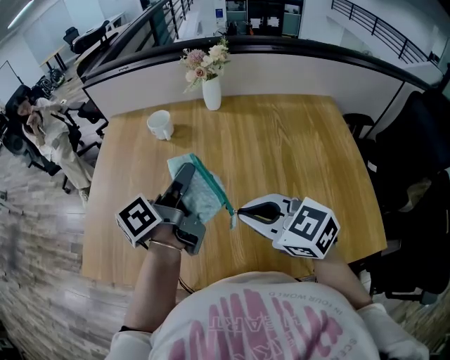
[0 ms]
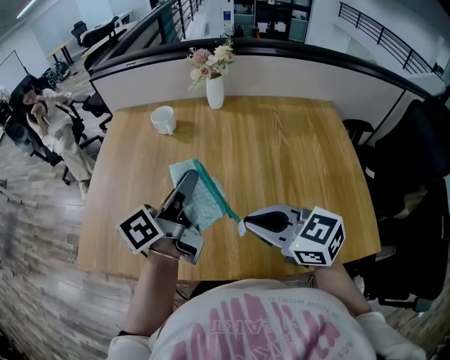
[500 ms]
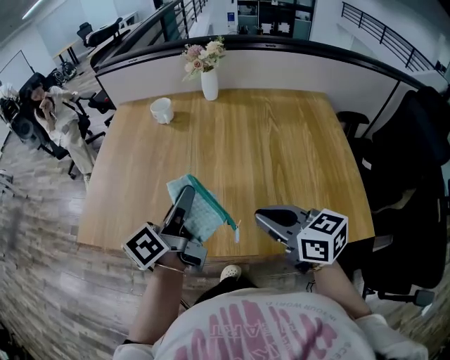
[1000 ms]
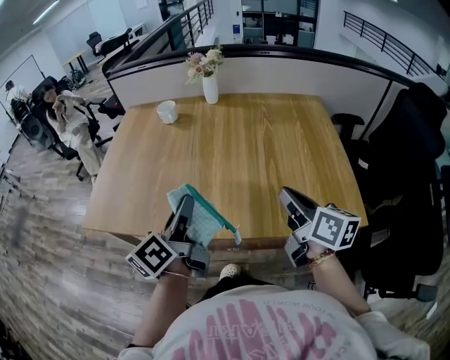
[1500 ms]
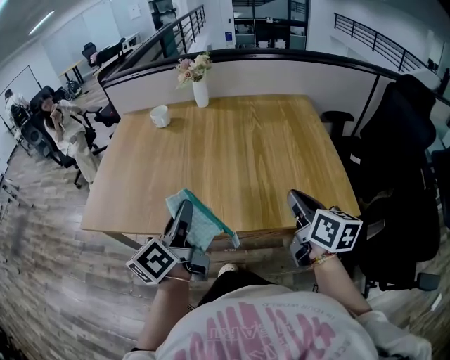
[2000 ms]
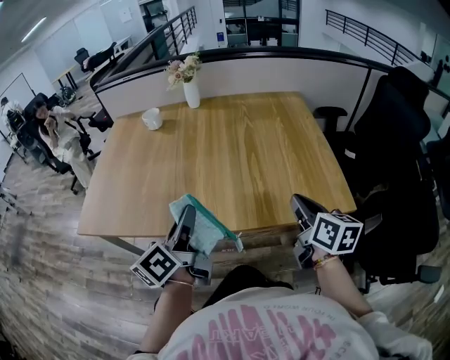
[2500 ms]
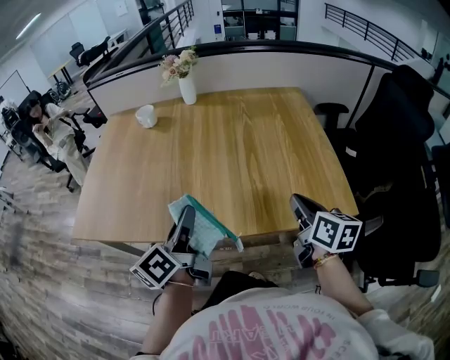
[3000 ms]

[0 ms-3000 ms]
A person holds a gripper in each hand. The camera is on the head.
0 ms to 1500 ms: The right gripper shifts approximately 20 cm backward and to the right, and changes its angle by about 60 degrees. Meanwhile the left gripper shifts roughly 25 cm backward, and swivels some 20 degrees.
1500 ms to 3000 ms: The left gripper goes approximately 5 cm to the right. The right gripper is displaced to the right and downward by approximately 10 cm.

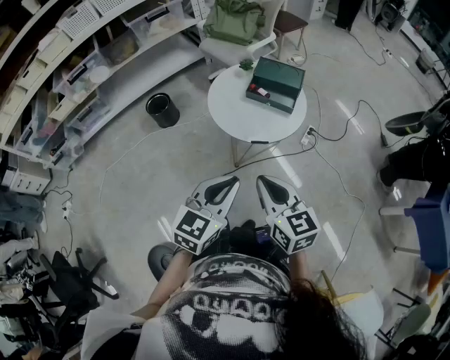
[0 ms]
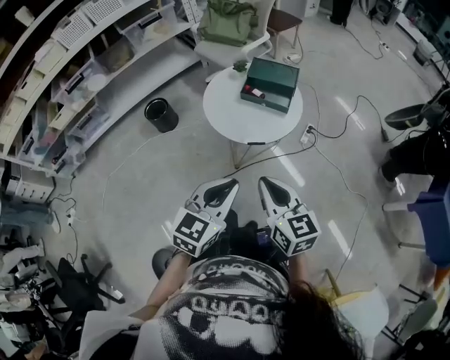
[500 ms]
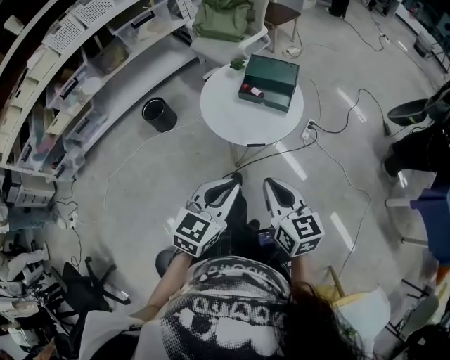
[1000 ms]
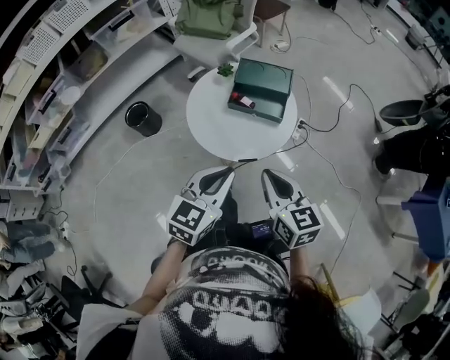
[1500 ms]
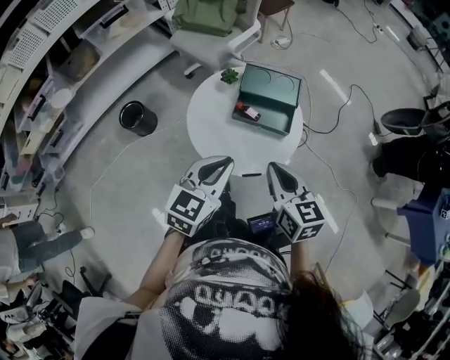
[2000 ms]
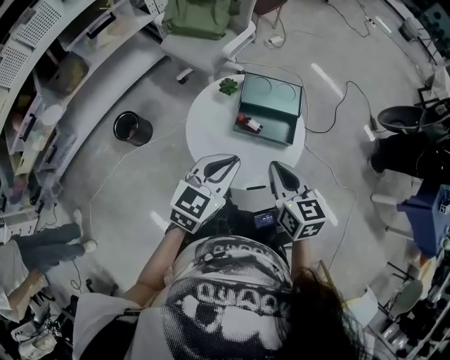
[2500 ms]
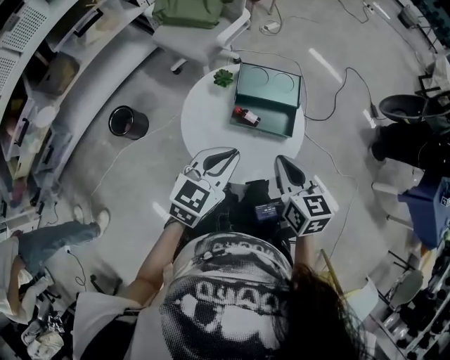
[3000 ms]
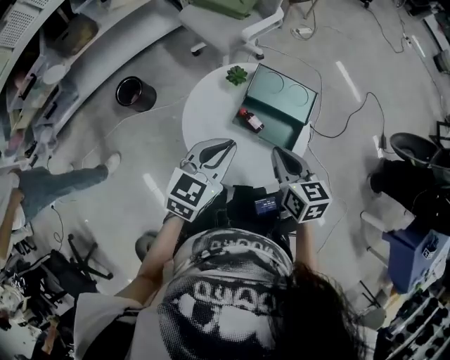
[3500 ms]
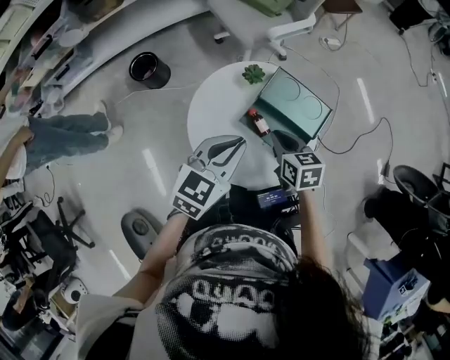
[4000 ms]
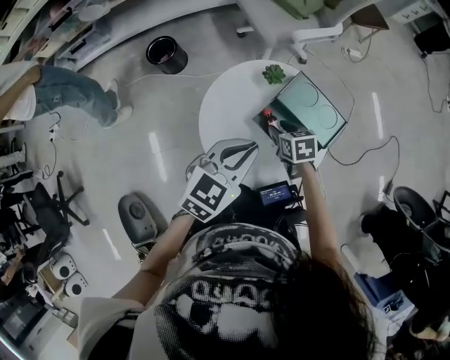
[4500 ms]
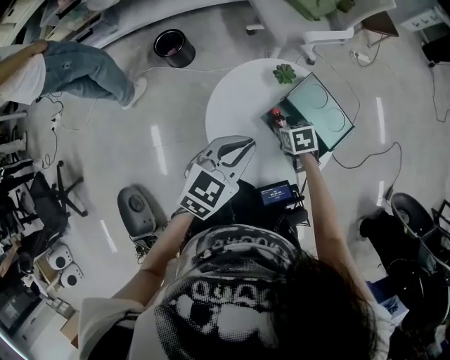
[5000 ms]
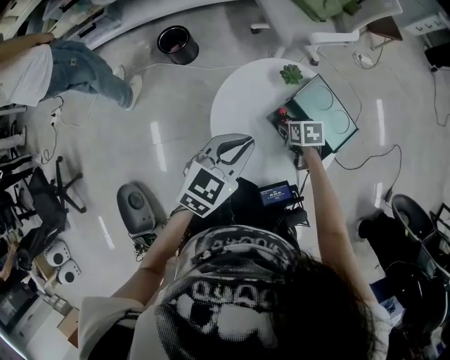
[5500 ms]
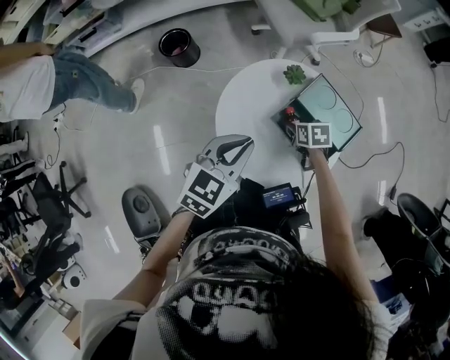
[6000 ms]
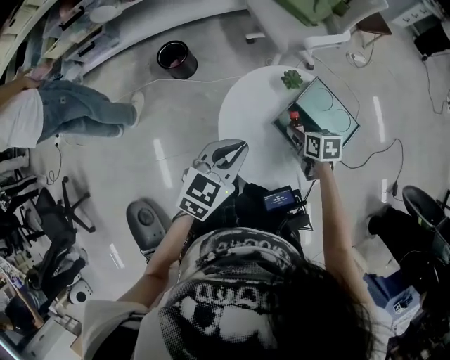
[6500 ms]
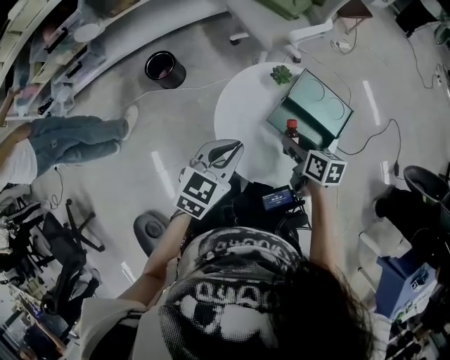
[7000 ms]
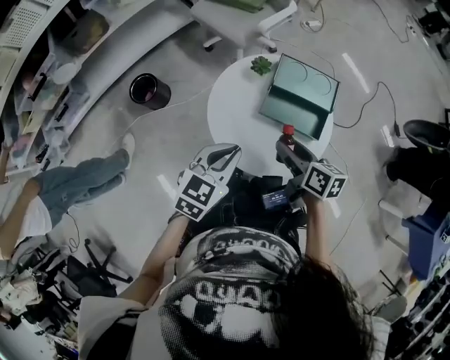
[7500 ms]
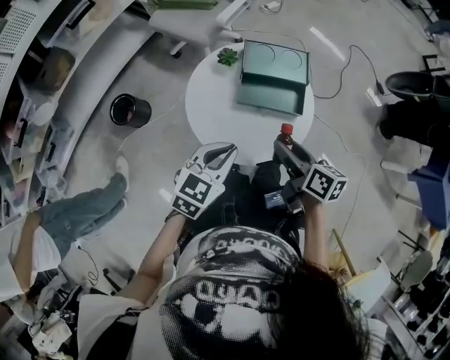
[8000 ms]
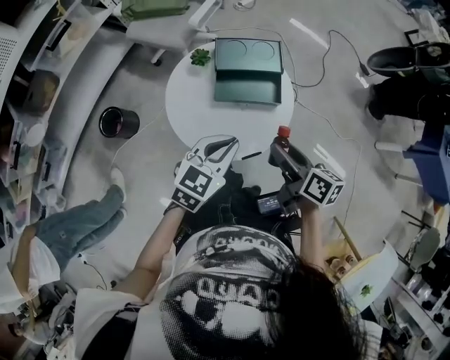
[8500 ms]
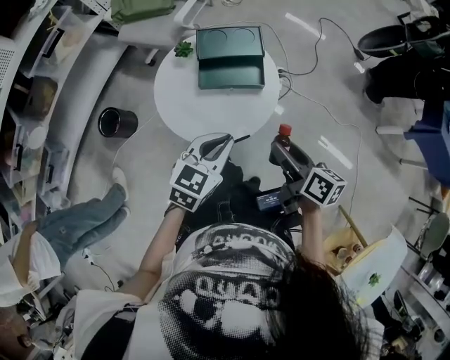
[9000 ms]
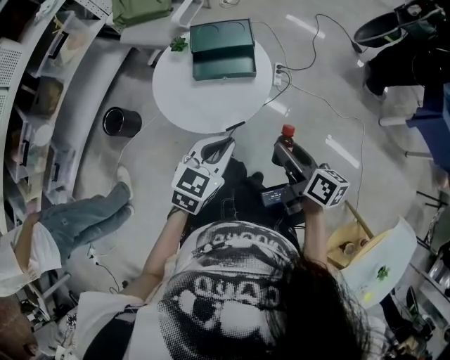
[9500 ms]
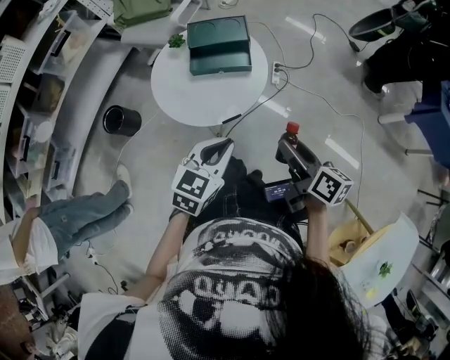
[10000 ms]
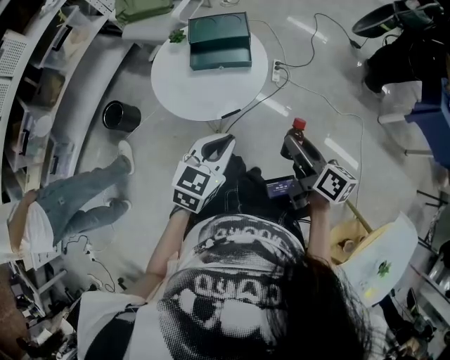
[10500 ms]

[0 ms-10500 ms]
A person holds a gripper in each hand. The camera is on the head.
0 ms to 2000 ms: The grippers both shift forward by about 25 cm.
2000 ms to 4000 ms: The left gripper ends up roughly 15 cm from where it was, while the right gripper changes place by some 25 cm, and changes its angle by about 30 degrees.
4000 ms to 6500 ms: The right gripper travels downward by approximately 5 cm, and opens. Meanwhile the left gripper heads to the left, covering some 10 cm.
6500 ms to 8500 ms: The right gripper shifts by roughly 25 cm, and changes its angle by some 60 degrees. Meanwhile the left gripper changes place by approximately 10 cm, and swivels about 40 degrees.
8500 ms to 10500 ms: Both grippers move backward and to the right, about 20 cm.

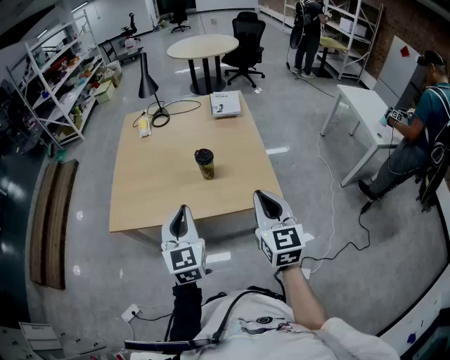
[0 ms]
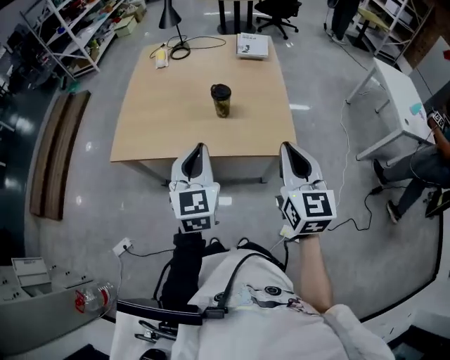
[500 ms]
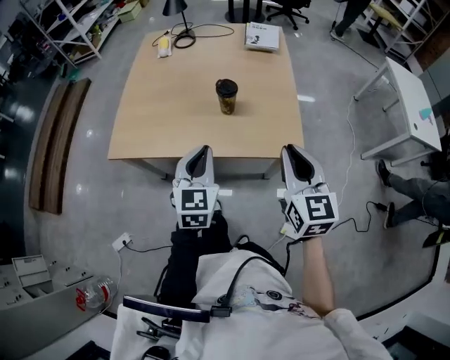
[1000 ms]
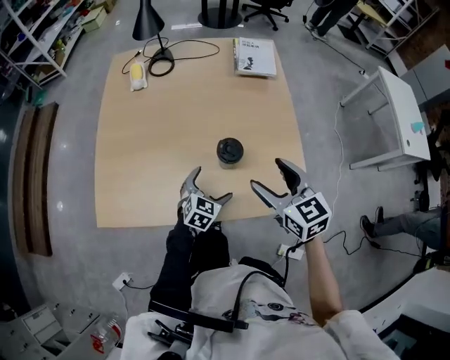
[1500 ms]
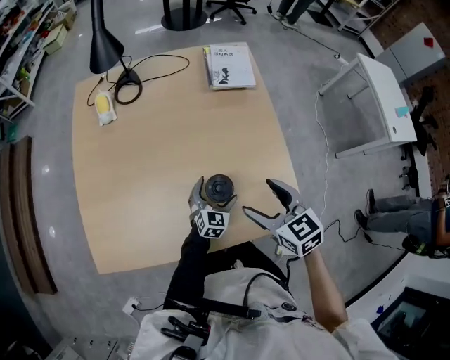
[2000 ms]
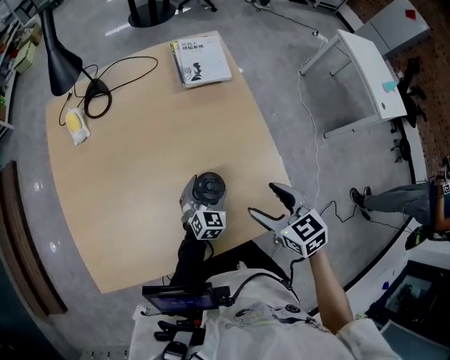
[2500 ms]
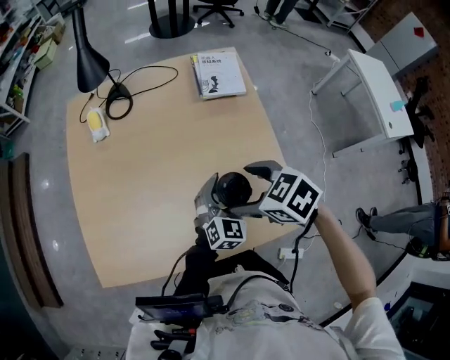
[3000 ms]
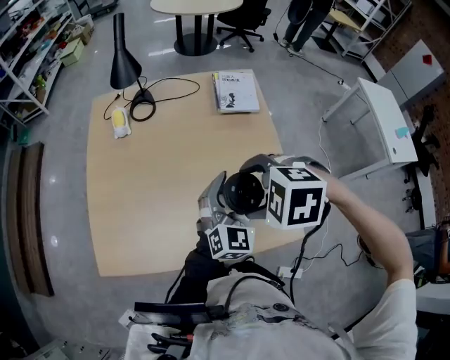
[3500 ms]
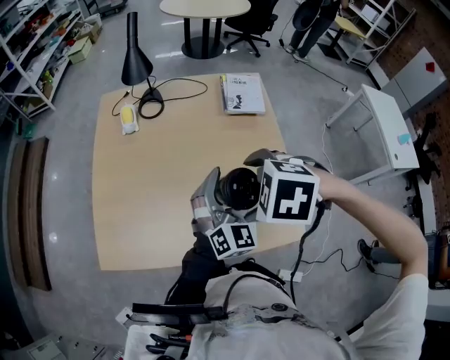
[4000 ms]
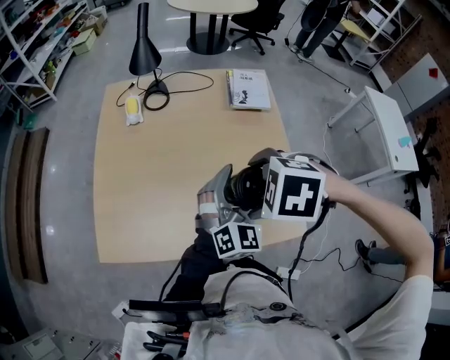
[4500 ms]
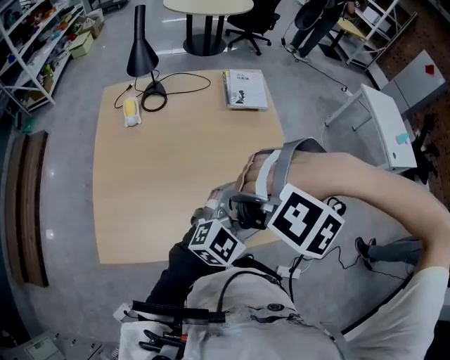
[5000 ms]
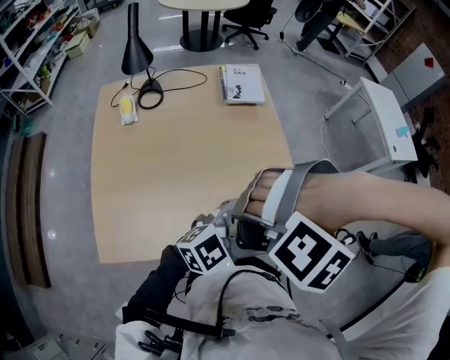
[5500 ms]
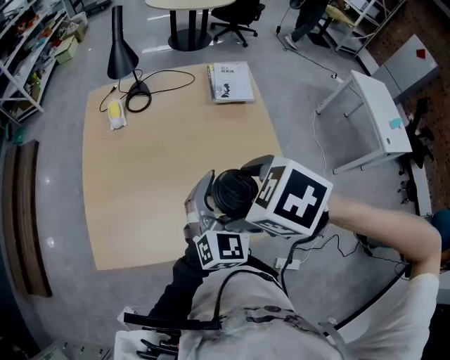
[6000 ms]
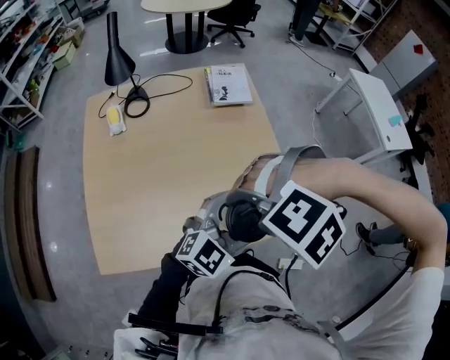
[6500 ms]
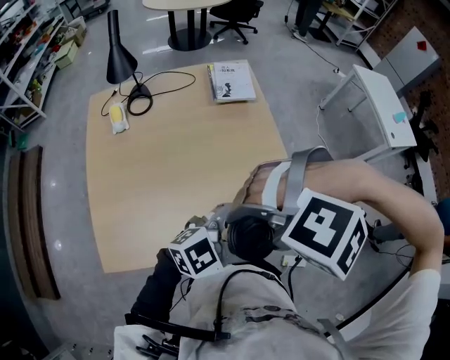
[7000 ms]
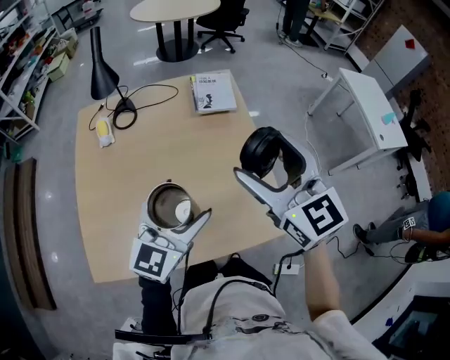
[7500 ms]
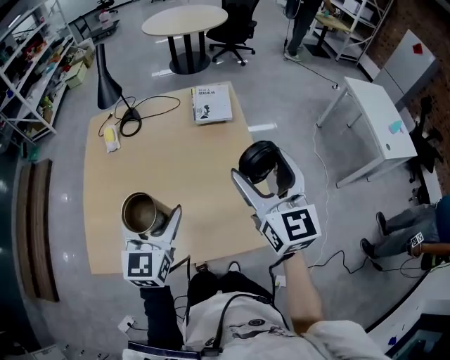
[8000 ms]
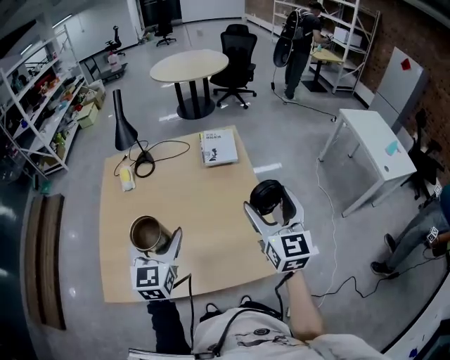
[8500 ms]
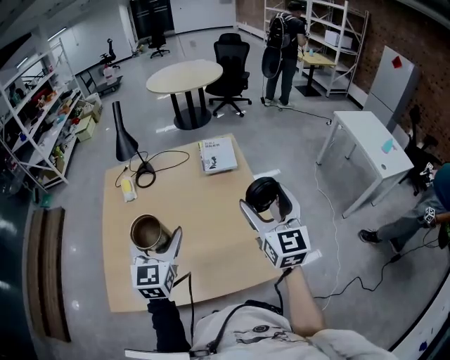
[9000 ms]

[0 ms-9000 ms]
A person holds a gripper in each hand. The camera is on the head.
0 ms to 2000 ms: The left gripper moves downward and forward, about 50 cm, changes its angle by roughly 40 degrees, and opens its fingers. Meanwhile the right gripper shifts approximately 35 cm forward and downward, turns by approximately 30 degrees, and opens.
2000 ms to 4500 ms: The right gripper goes some 10 cm upward, and angles its fingers downward, by about 40 degrees. The left gripper travels upward by some 30 cm, and swivels about 30 degrees.
4500 ms to 7000 ms: The right gripper shifts by approximately 10 cm, and rolls counterclockwise, seen from behind, by some 50 degrees. Meanwhile the left gripper changes place by approximately 15 cm, and swivels some 70 degrees.
7000 ms to 9000 ms: The left gripper ends up roughly 25 cm from where it was, and swivels some 80 degrees. Meanwhile the right gripper ends up roughly 25 cm from where it was, and points its fingers about 70 degrees further upward.

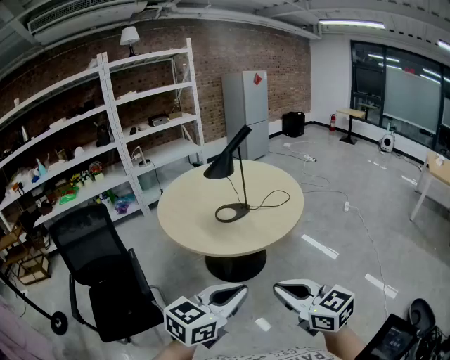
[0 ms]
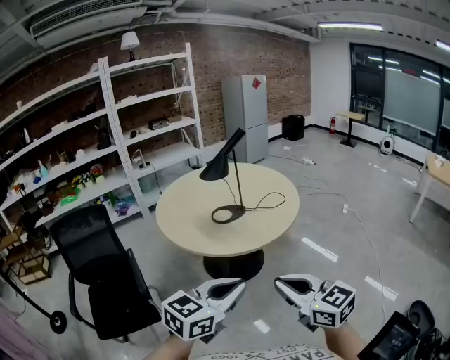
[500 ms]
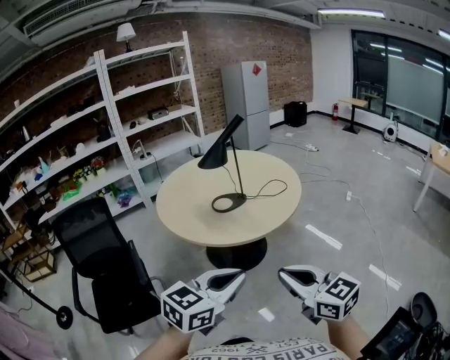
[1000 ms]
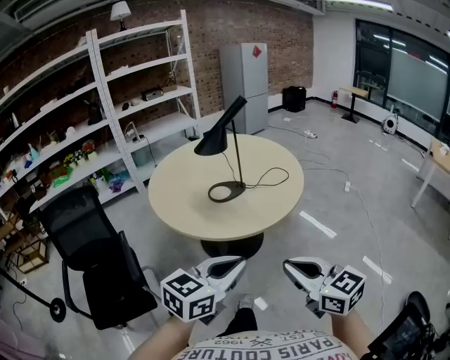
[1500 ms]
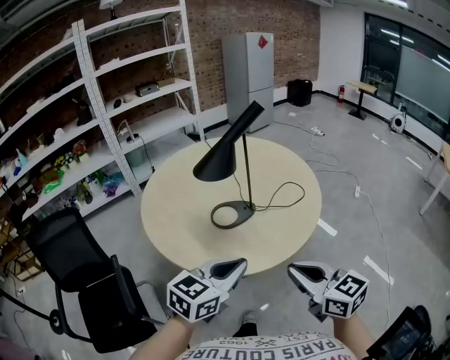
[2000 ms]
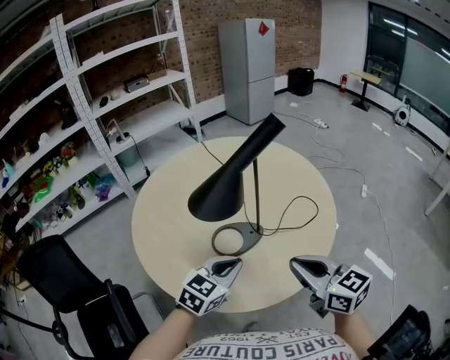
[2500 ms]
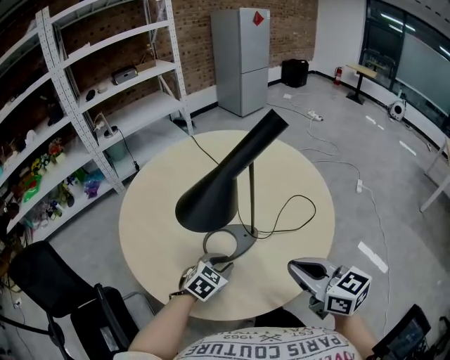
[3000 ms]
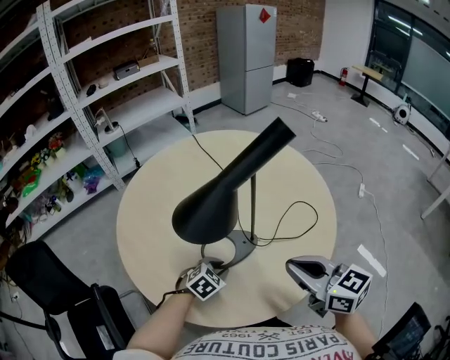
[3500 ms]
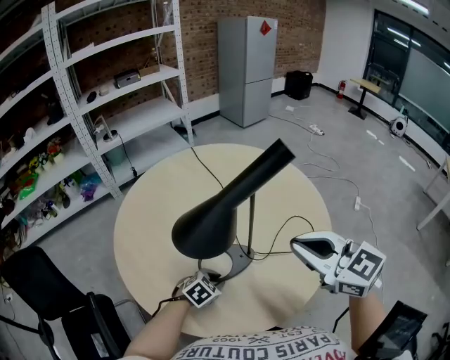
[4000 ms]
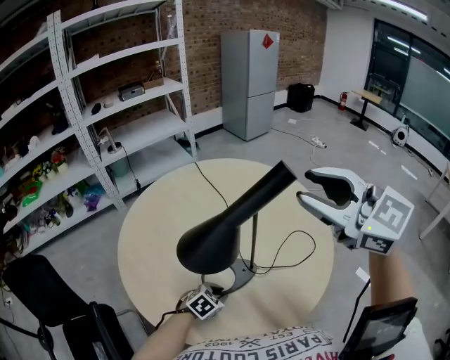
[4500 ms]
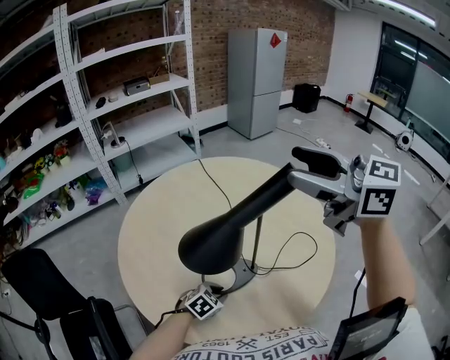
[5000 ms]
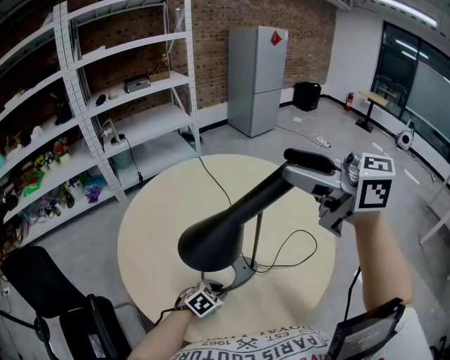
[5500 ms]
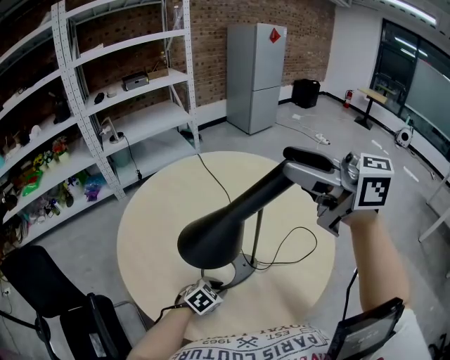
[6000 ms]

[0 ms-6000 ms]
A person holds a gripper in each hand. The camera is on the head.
0 ms to 2000 ms: Both grippers move forward, roughly 25 cm.
2000 ms to 4000 ms: The right gripper travels forward by approximately 25 cm. Meanwhile the left gripper shifts approximately 35 cm downward and forward, and points its fingers roughly 40 degrees further downward.
4000 ms to 6000 ms: The right gripper is displaced upward and forward by about 20 cm, swivels about 30 degrees, and opens up.
